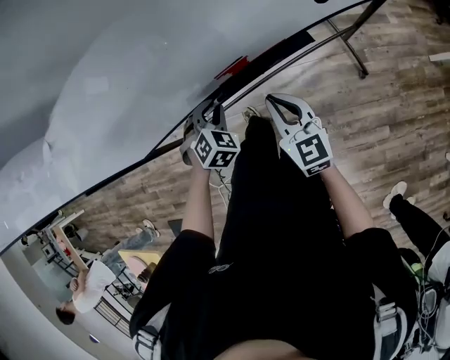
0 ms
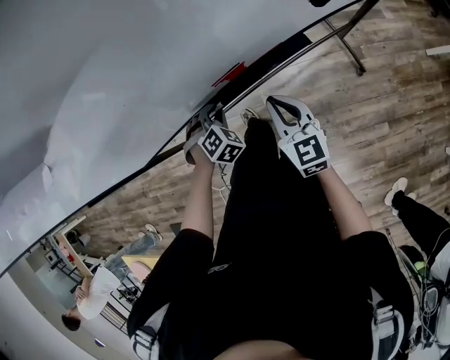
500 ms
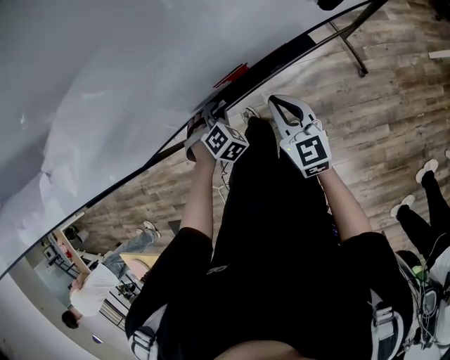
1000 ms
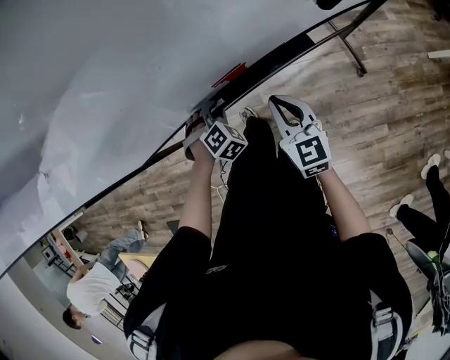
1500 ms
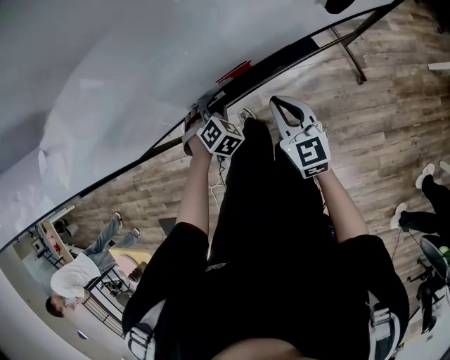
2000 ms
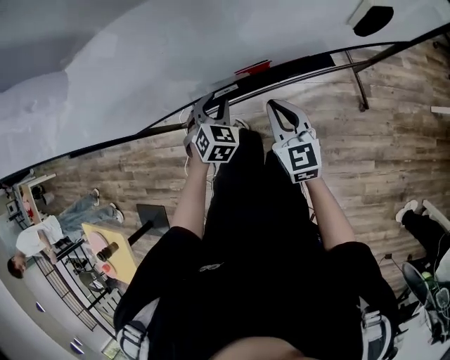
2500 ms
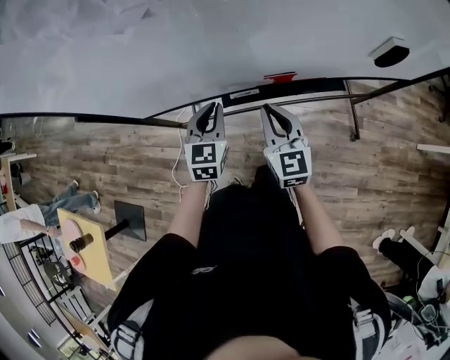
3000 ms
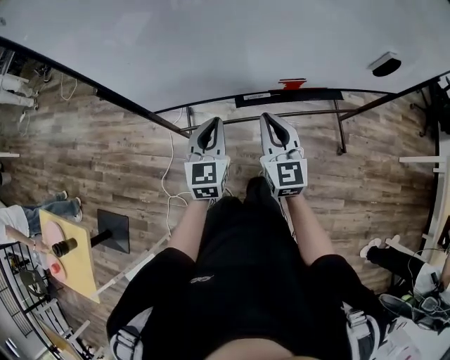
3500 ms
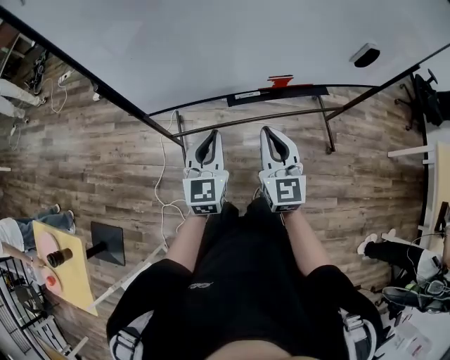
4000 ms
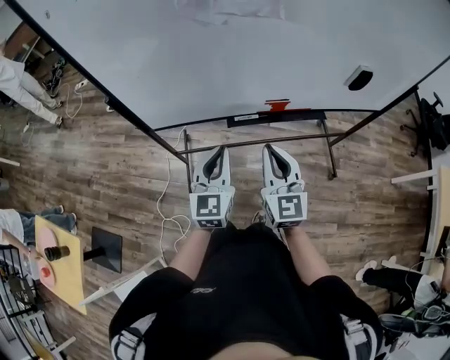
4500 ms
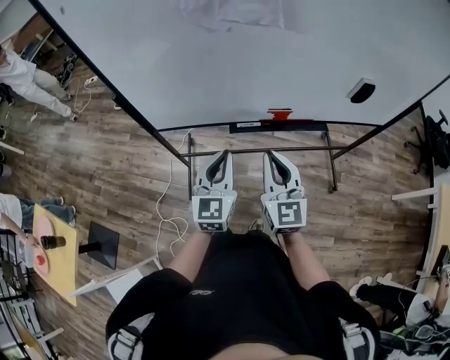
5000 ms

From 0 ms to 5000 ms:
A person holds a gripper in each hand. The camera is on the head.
From 2500 ms to 5000 ms: The grippers both shift upward, backward and to the left by approximately 25 cm. The left gripper tips its fingers upward by some 40 degrees, and closes up.

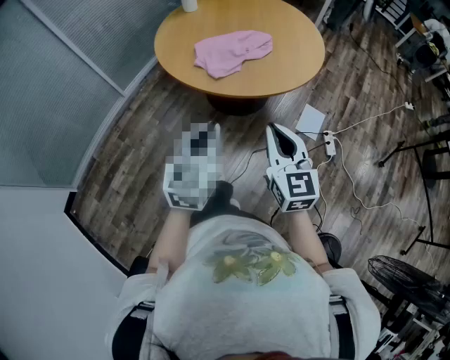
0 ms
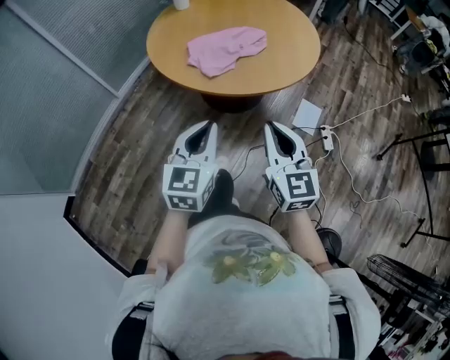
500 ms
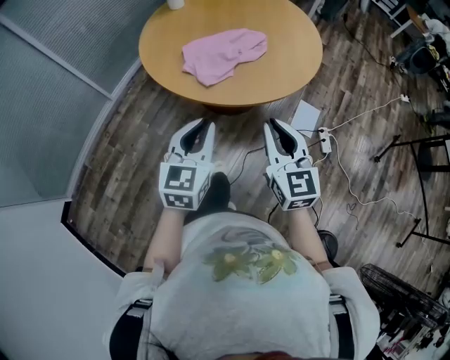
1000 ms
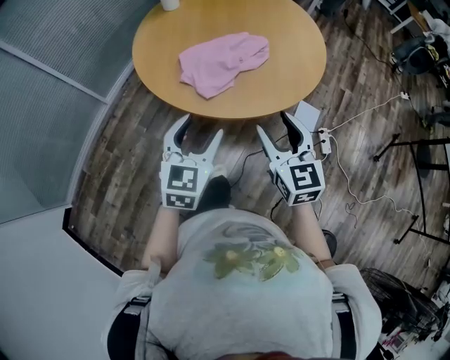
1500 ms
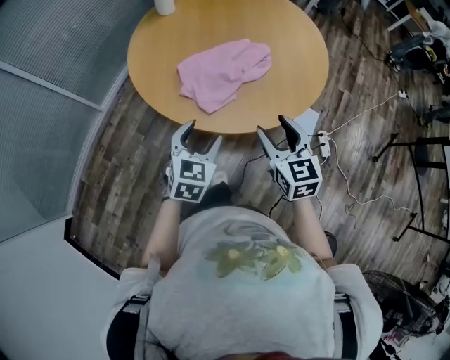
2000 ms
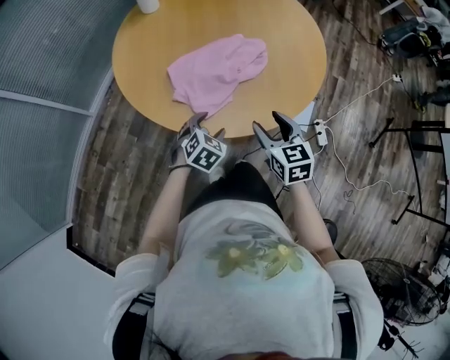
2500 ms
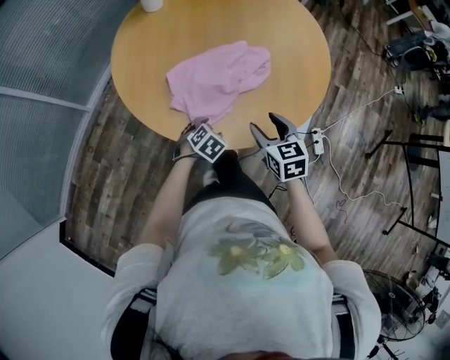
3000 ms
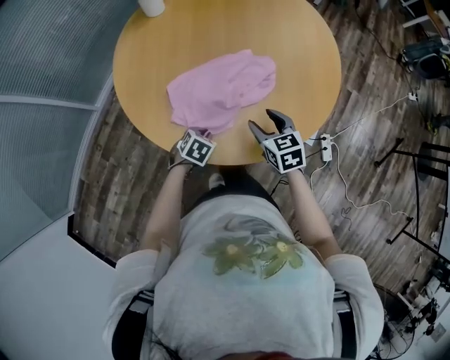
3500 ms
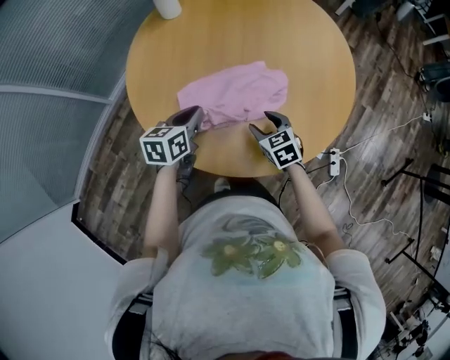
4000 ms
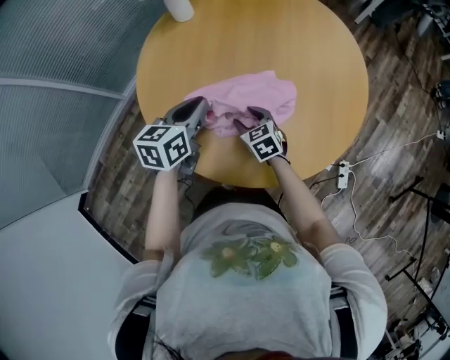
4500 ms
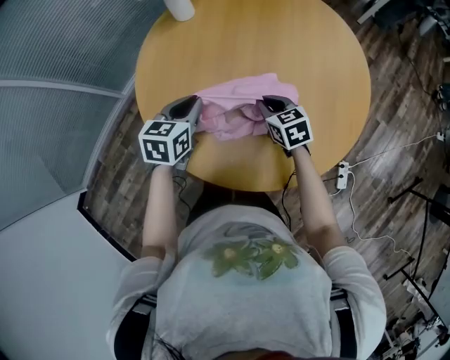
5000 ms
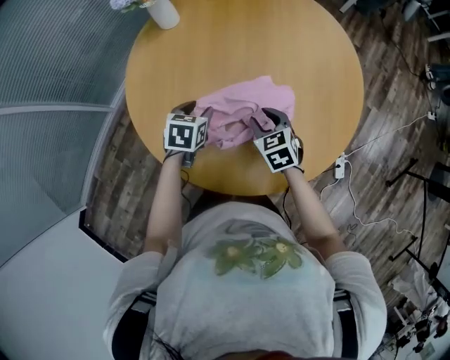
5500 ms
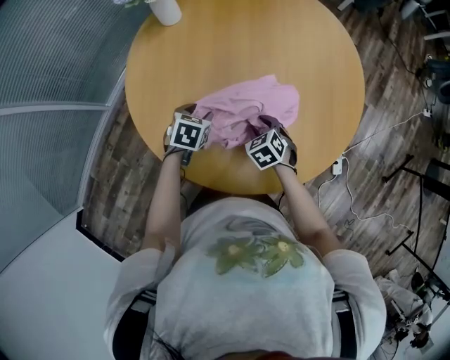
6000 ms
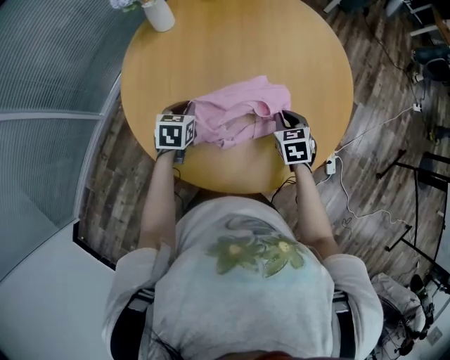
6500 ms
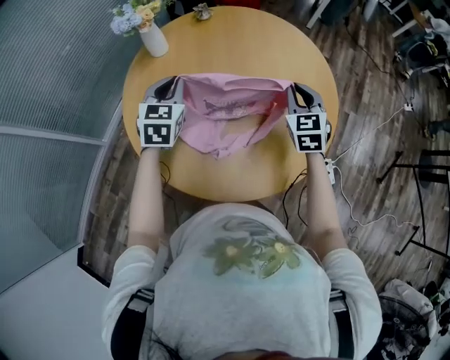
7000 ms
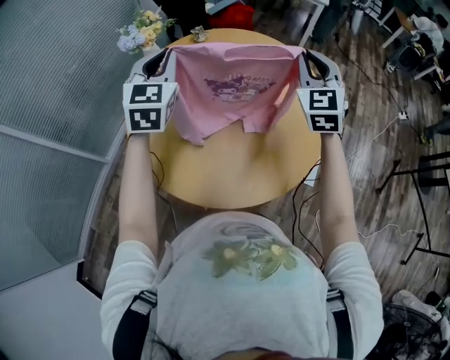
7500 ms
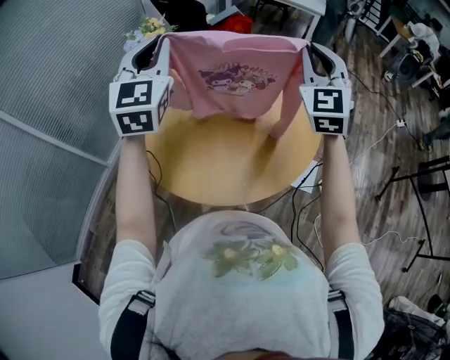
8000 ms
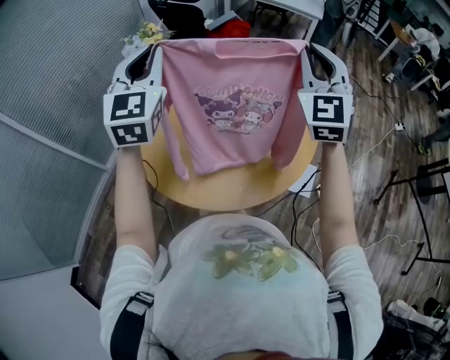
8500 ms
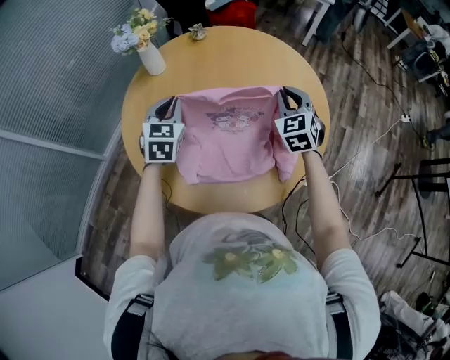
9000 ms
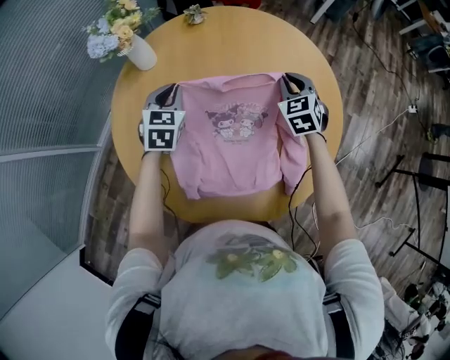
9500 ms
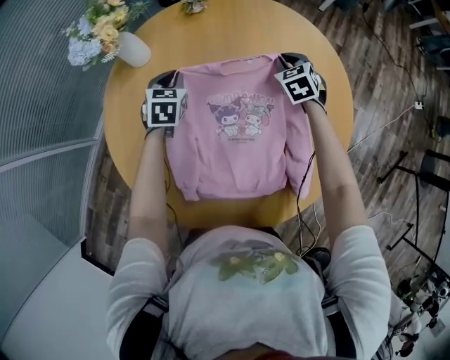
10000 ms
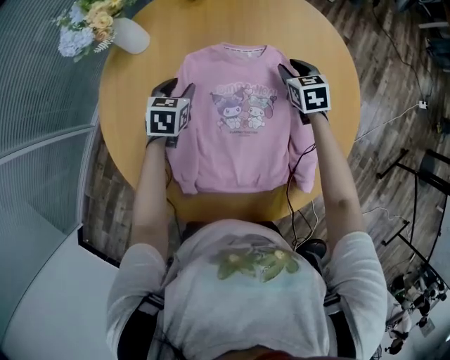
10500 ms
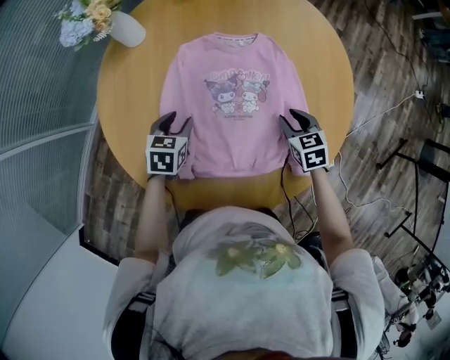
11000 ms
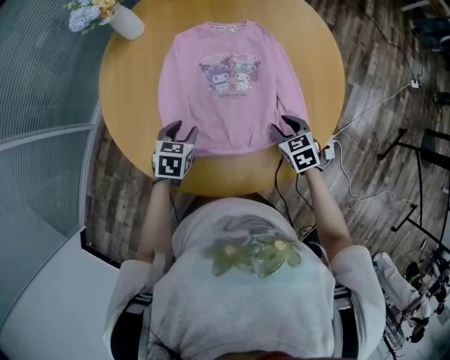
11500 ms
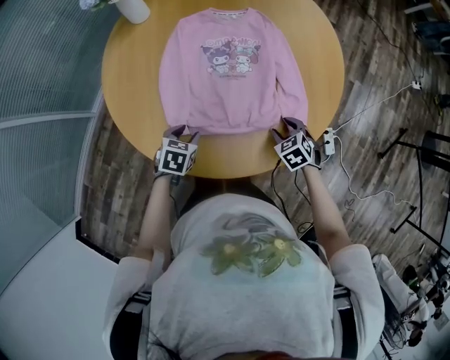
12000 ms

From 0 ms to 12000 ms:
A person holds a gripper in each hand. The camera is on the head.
From 0 ms to 2000 ms: The left gripper moves forward and downward, about 25 cm, changes its angle by about 20 degrees, and opens. The right gripper heads forward, covering about 25 cm, and opens.
From 2000 ms to 4000 ms: The right gripper heads forward and downward, covering about 30 cm, and turns by some 30 degrees; the left gripper heads forward, covering about 25 cm, rotates approximately 40 degrees, and closes.
From 4000 ms to 6000 ms: The left gripper heads downward and forward, covering approximately 15 cm, changes its angle by about 30 degrees, and opens. The right gripper is displaced forward and downward by roughly 10 cm, and closes, then reopens.
From 6000 ms to 8000 ms: Both grippers travel together upward, about 50 cm. The left gripper angles its fingers upward, by approximately 60 degrees, and closes. Meanwhile the right gripper angles its fingers upward, by roughly 60 degrees, and closes its fingers.
From 8000 ms to 10000 ms: The two grippers go approximately 50 cm downward and forward. The right gripper angles its fingers downward, by some 50 degrees. The left gripper tips its fingers downward by about 50 degrees.
From 10000 ms to 12000 ms: Both grippers travel together backward, approximately 40 cm. The right gripper opens. Meanwhile the left gripper turns by approximately 20 degrees, and opens.

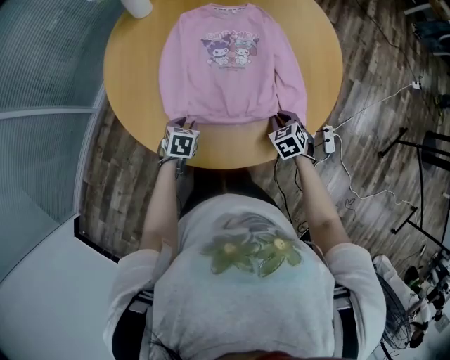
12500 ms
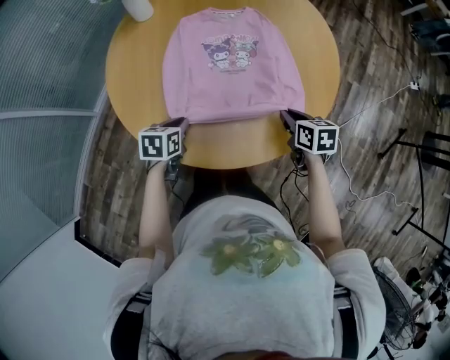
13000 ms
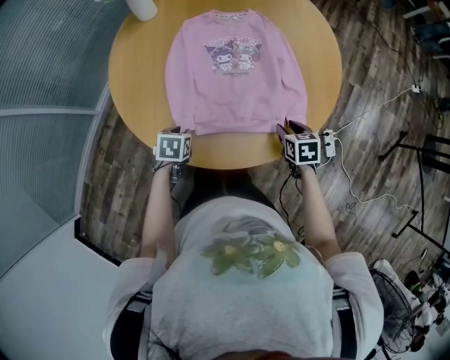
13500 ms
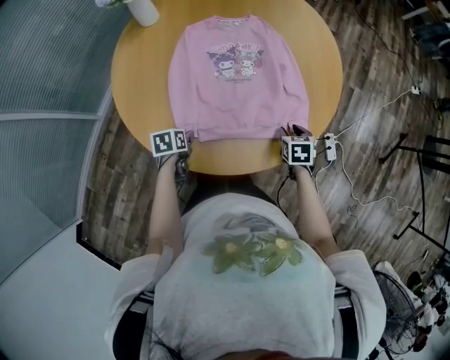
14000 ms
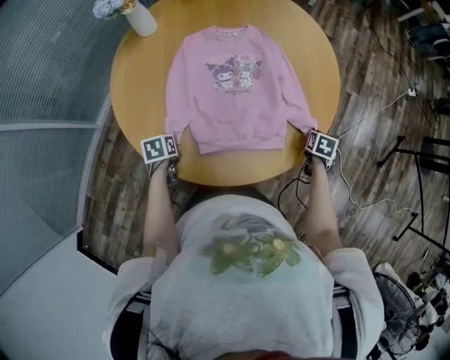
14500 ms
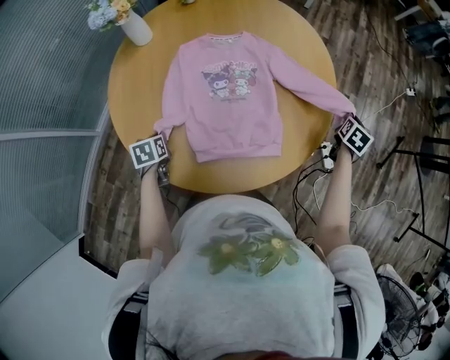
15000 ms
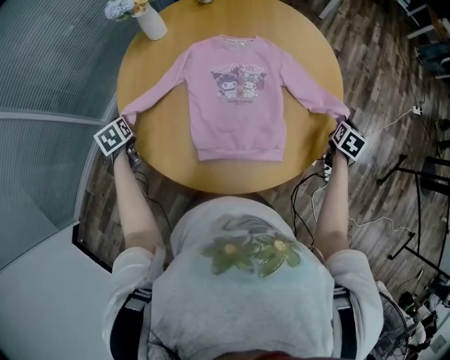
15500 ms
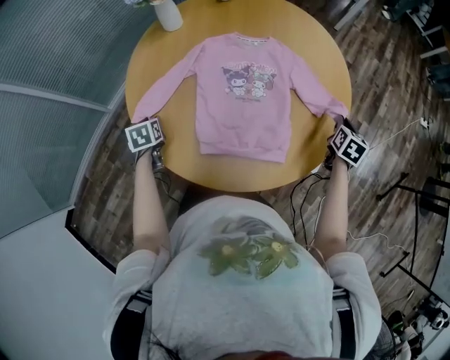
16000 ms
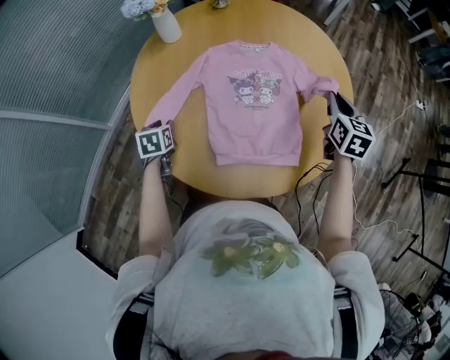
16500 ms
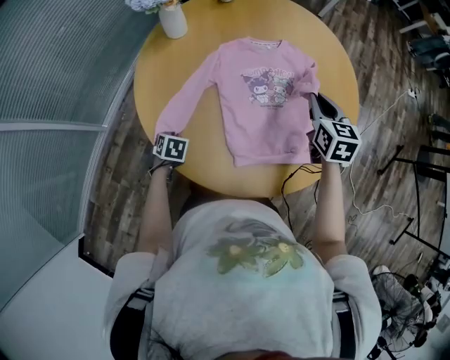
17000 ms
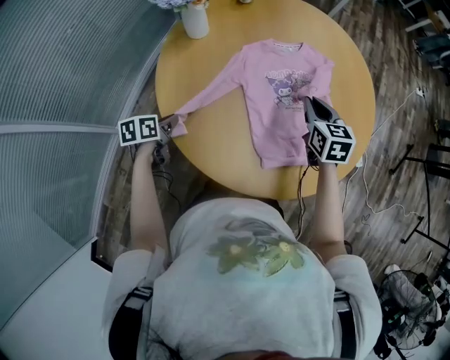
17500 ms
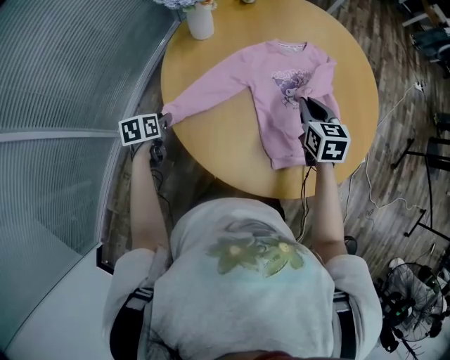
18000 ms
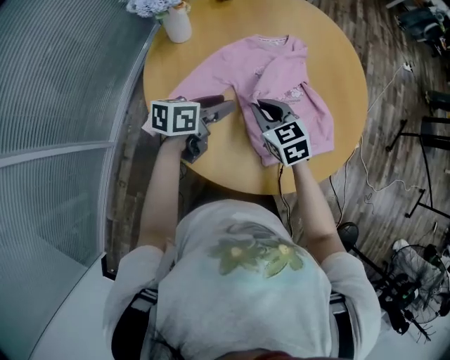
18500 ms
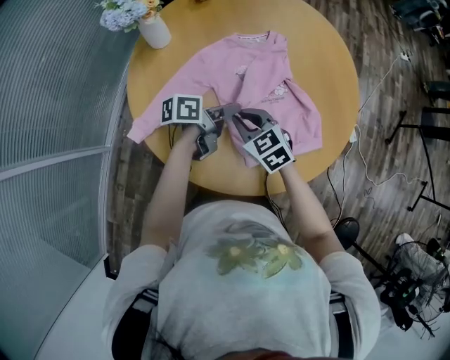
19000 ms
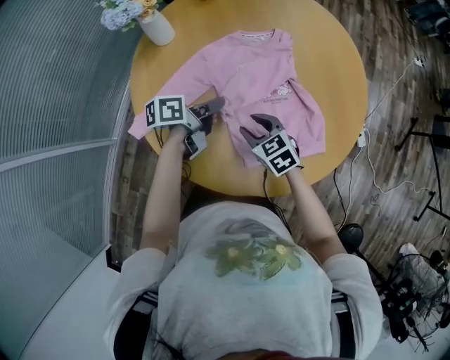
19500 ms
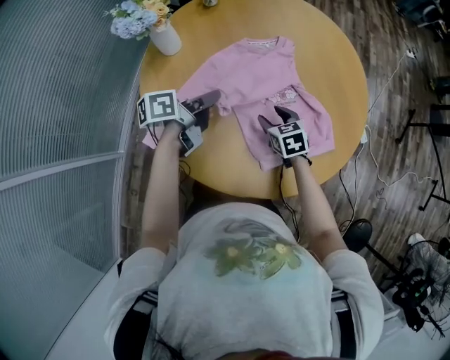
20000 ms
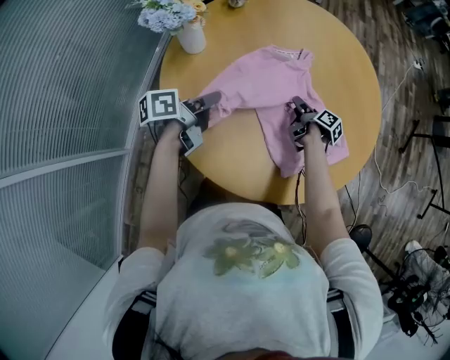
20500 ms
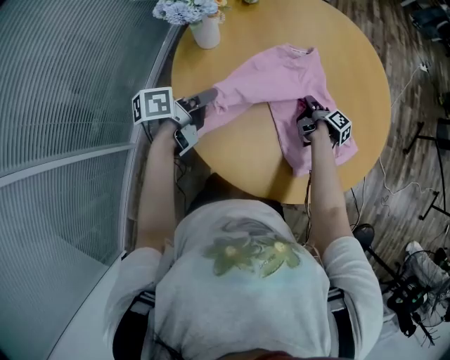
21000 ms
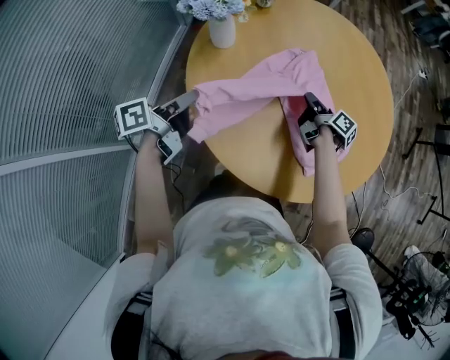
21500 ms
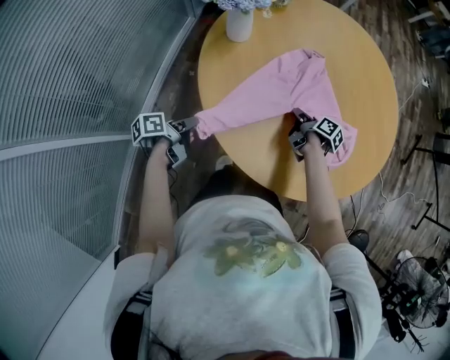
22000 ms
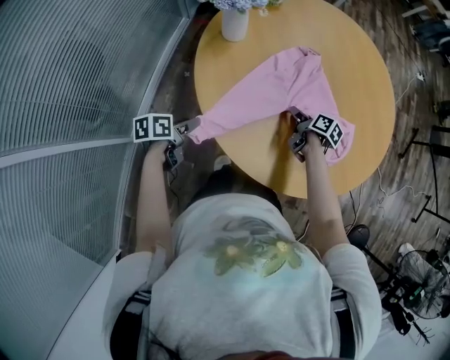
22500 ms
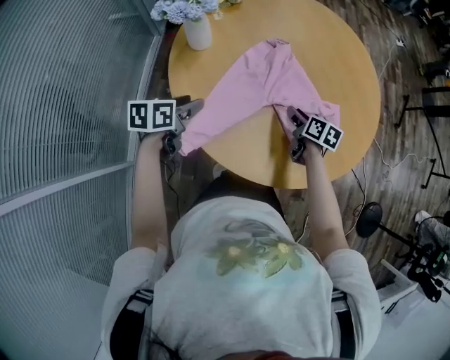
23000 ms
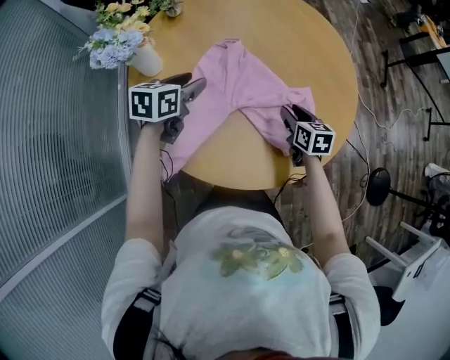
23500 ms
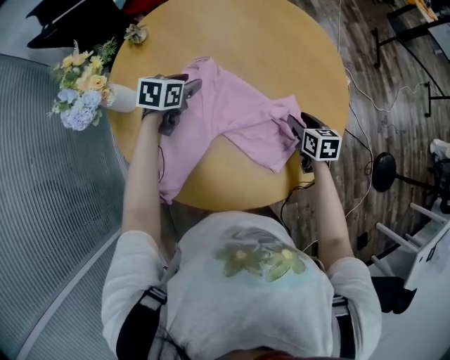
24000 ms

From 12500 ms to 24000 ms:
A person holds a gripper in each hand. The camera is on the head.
From 12500 ms to 14500 ms: The left gripper travels to the left by approximately 10 cm, changes its angle by some 30 degrees, and closes. Meanwhile the right gripper goes roughly 15 cm to the right, rotates around the line of its fingers by roughly 50 degrees, clockwise from behind, and opens and closes again.
From 14500 ms to 16500 ms: The right gripper shifts about 25 cm upward, and angles its fingers upward, by approximately 30 degrees.
From 16500 ms to 18500 ms: The right gripper is displaced to the left by about 35 cm, and rotates about 20 degrees; the left gripper travels upward and forward by approximately 15 cm, moves about 20 cm to the left and comes back, angles its fingers upward, by roughly 30 degrees, and closes, then reopens.
From 18500 ms to 20000 ms: The left gripper moves about 10 cm to the right and comes back, rotates roughly 20 degrees, and closes its fingers; the right gripper heads downward and to the right, covering some 10 cm, and opens.
From 20000 ms to 22000 ms: The right gripper goes roughly 10 cm to the left and downward, twists roughly 70 degrees clockwise, seen from behind, and closes up. The left gripper shifts some 35 cm to the left, backward and downward, and swivels roughly 20 degrees.
From 22000 ms to 24000 ms: The left gripper ends up approximately 40 cm from where it was, rolls clockwise, seen from behind, by approximately 70 degrees, and opens its fingers; the right gripper changes place by approximately 25 cm, changes its angle by about 50 degrees, and opens up.
